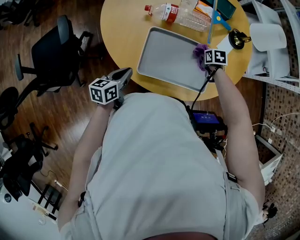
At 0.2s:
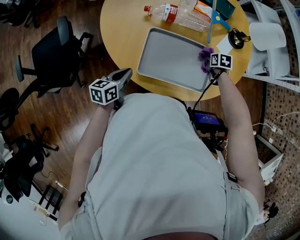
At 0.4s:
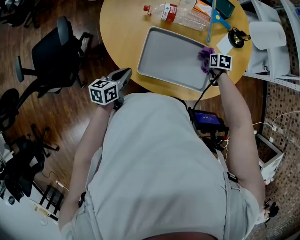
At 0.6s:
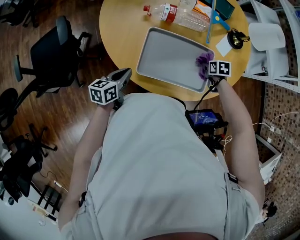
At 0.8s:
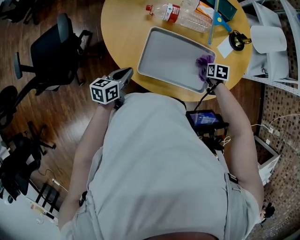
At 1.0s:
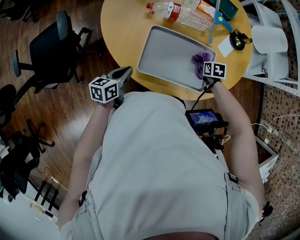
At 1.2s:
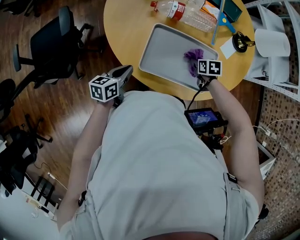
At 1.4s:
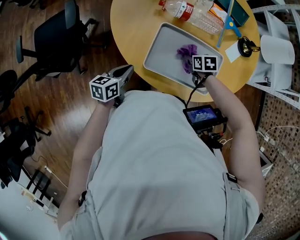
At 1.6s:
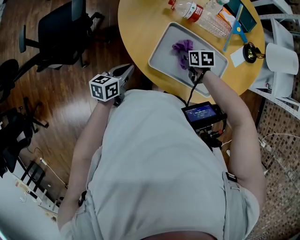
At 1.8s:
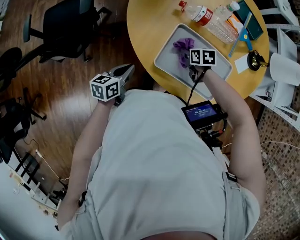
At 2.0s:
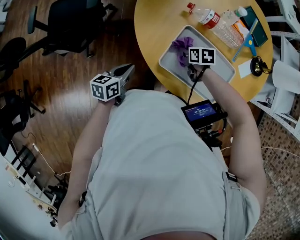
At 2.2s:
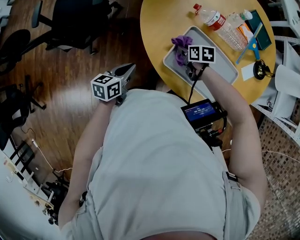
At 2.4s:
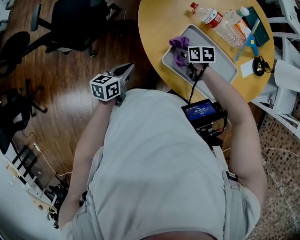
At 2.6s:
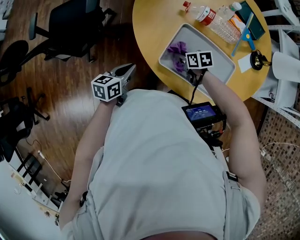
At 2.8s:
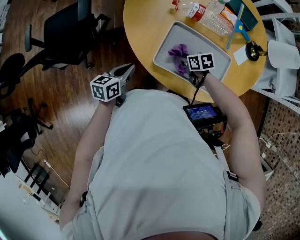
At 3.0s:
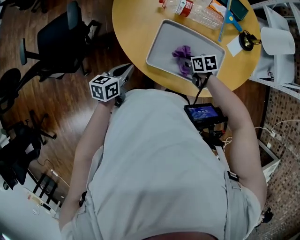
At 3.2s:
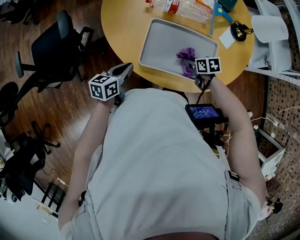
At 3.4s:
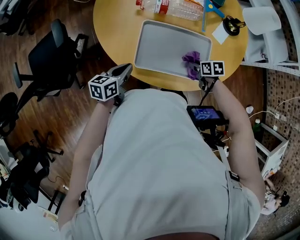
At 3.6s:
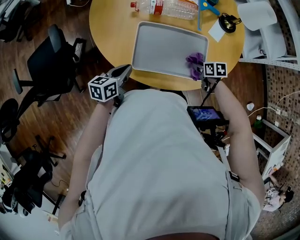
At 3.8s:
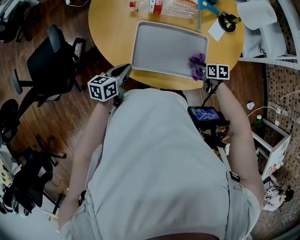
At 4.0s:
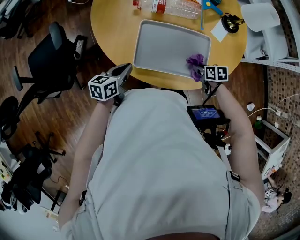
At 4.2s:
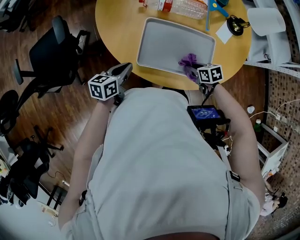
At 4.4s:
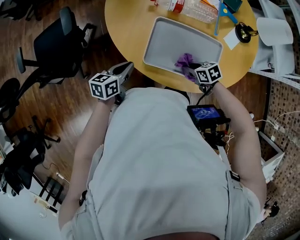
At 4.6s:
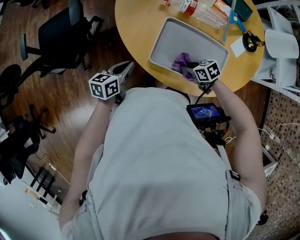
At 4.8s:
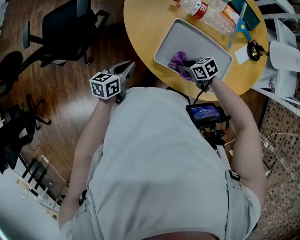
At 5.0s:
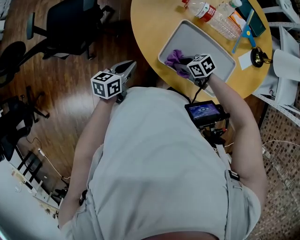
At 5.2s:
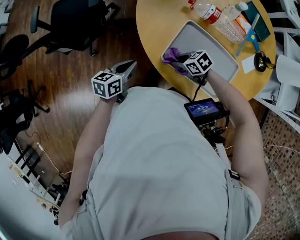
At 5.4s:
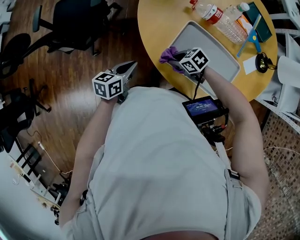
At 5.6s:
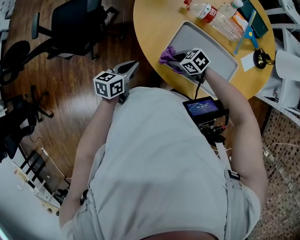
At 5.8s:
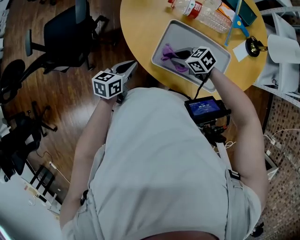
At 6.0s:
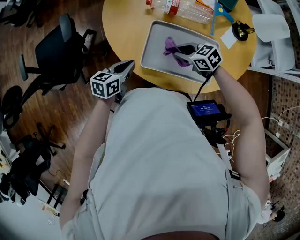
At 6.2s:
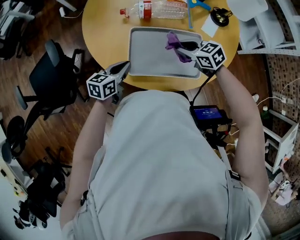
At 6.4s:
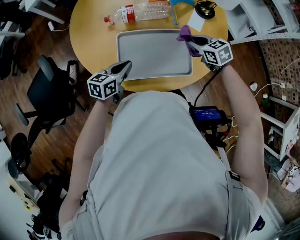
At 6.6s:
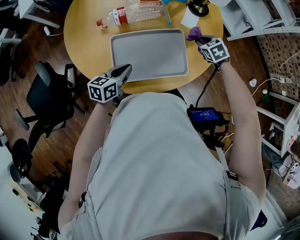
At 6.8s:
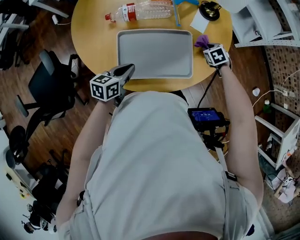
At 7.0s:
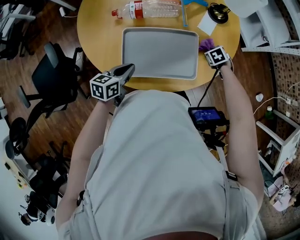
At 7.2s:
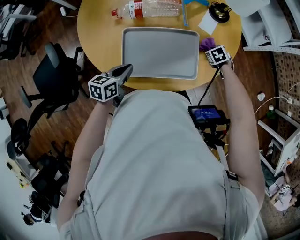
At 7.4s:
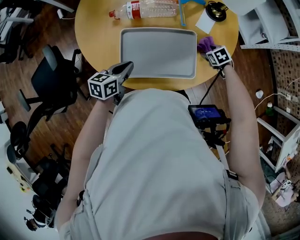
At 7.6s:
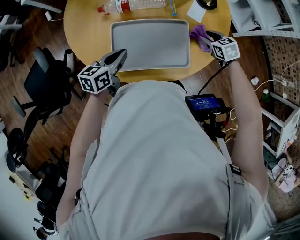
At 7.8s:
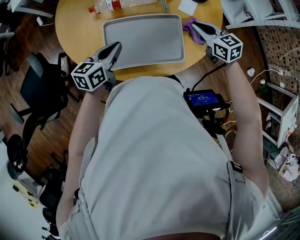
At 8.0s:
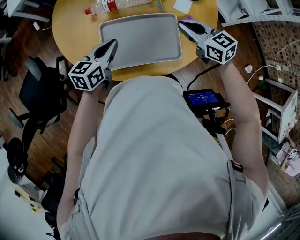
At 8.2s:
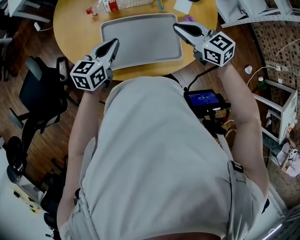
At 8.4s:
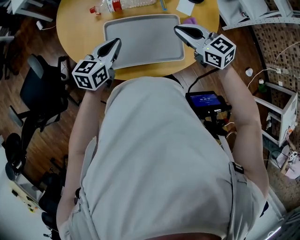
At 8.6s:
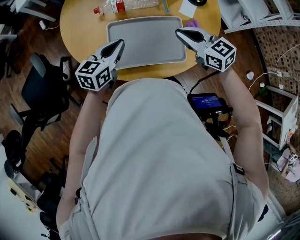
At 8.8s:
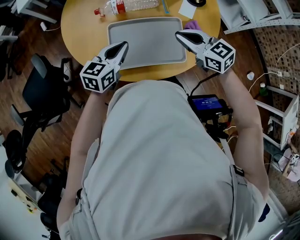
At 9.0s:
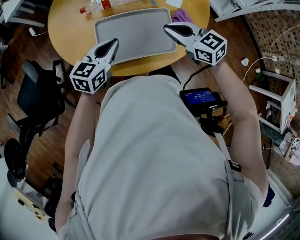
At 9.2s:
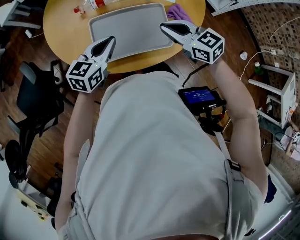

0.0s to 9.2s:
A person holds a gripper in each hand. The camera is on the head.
0.0s to 1.6s: The left gripper shifts by about 5 cm. Meanwhile the right gripper changes place by about 20 cm, and rotates roughly 20 degrees.
1.6s to 3.0s: The right gripper goes roughly 5 cm backward, and moves some 10 cm to the left and comes back.
4.6s to 6.2s: The left gripper ends up some 10 cm from where it was, and changes its angle by some 20 degrees. The right gripper moves upward, about 15 cm, and rotates some 30 degrees.
6.2s to 7.6s: The left gripper ends up some 10 cm from where it was. Meanwhile the right gripper moves approximately 15 cm downward and comes back, turns by some 30 degrees, and opens up.
7.6s to 9.2s: The left gripper heads upward, covering some 5 cm, and changes its angle by about 20 degrees, while the right gripper travels upward, to the left and backward by roughly 25 cm, tilts its fingers about 30 degrees upward, and closes its fingers.

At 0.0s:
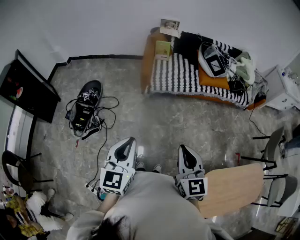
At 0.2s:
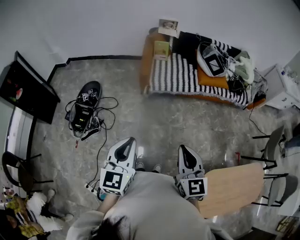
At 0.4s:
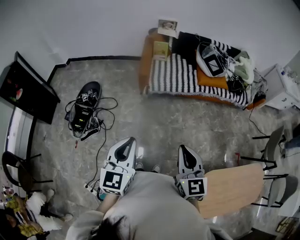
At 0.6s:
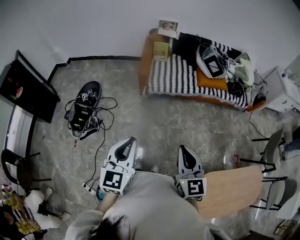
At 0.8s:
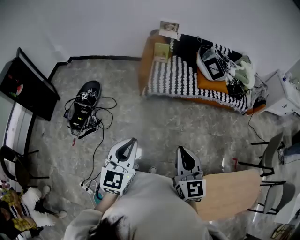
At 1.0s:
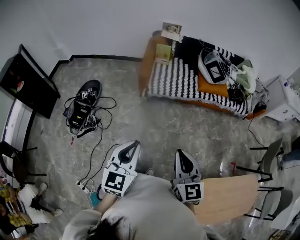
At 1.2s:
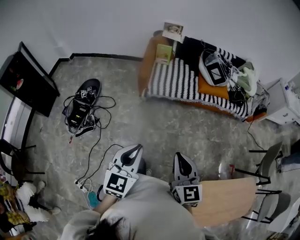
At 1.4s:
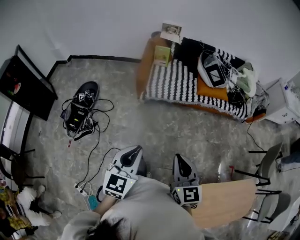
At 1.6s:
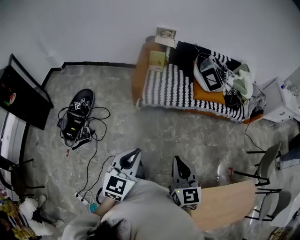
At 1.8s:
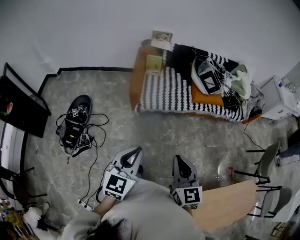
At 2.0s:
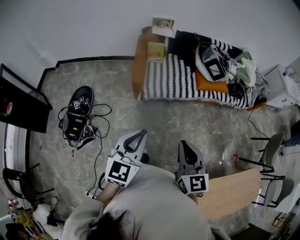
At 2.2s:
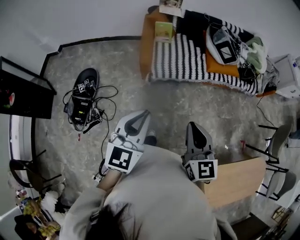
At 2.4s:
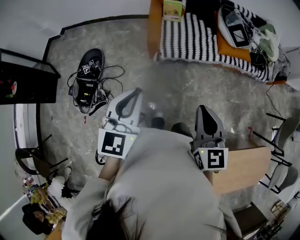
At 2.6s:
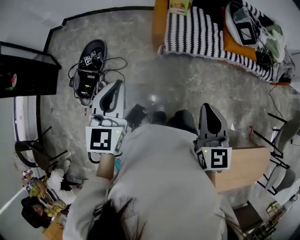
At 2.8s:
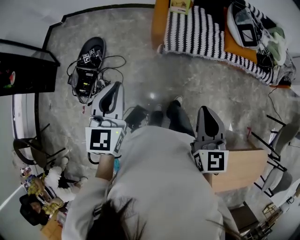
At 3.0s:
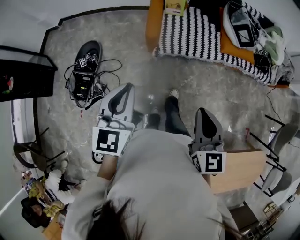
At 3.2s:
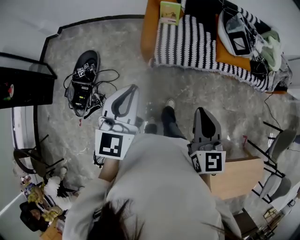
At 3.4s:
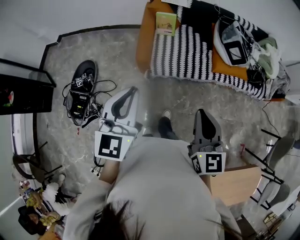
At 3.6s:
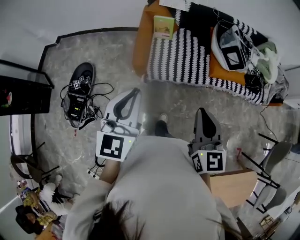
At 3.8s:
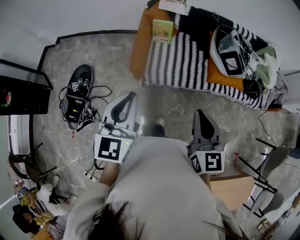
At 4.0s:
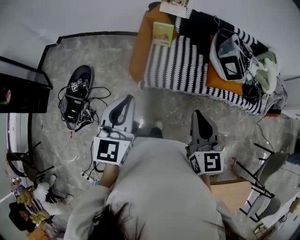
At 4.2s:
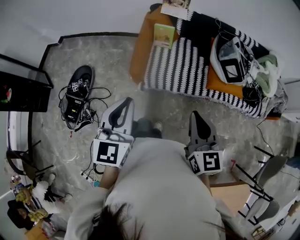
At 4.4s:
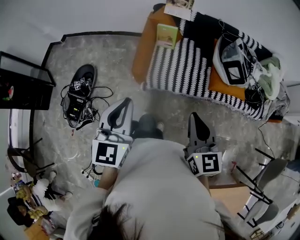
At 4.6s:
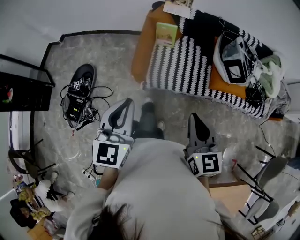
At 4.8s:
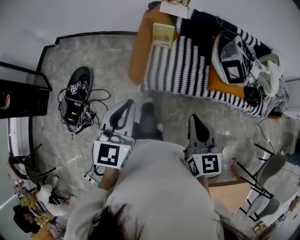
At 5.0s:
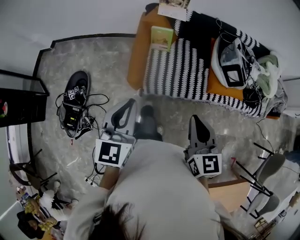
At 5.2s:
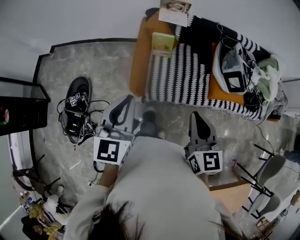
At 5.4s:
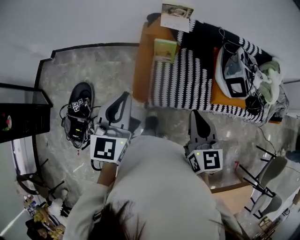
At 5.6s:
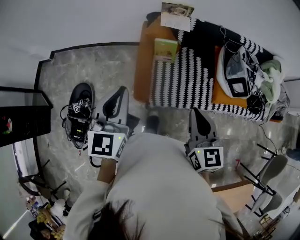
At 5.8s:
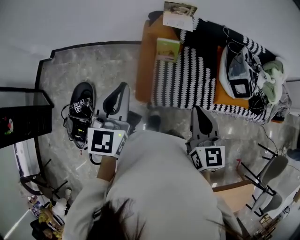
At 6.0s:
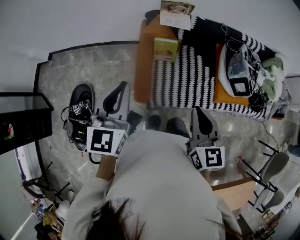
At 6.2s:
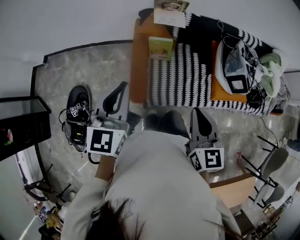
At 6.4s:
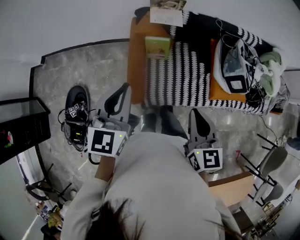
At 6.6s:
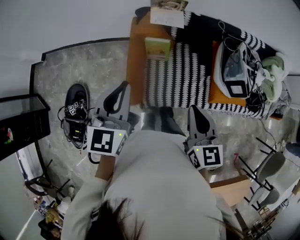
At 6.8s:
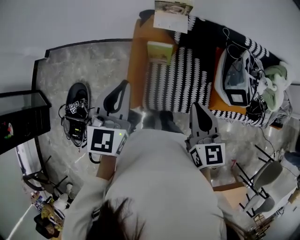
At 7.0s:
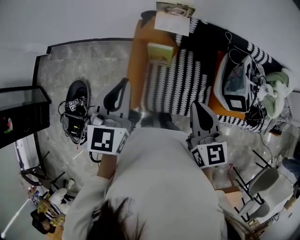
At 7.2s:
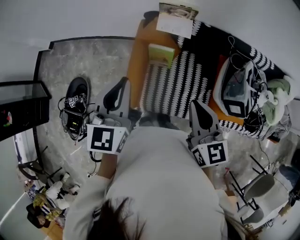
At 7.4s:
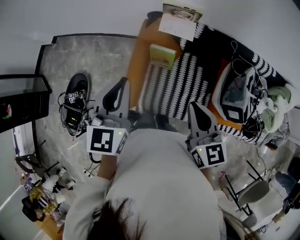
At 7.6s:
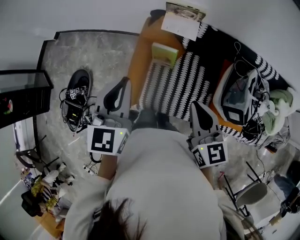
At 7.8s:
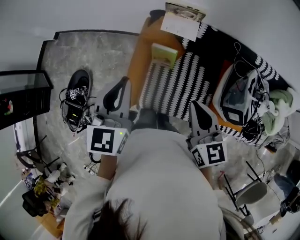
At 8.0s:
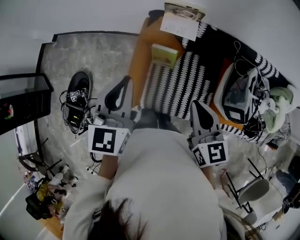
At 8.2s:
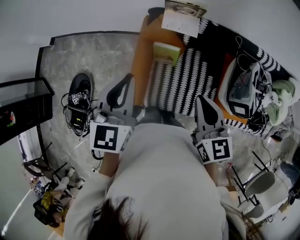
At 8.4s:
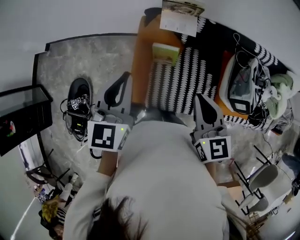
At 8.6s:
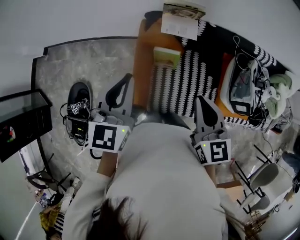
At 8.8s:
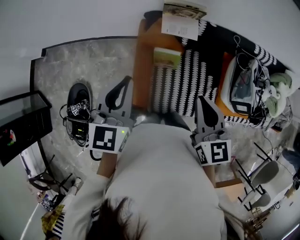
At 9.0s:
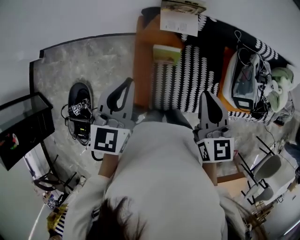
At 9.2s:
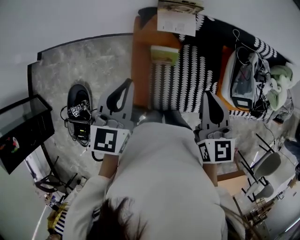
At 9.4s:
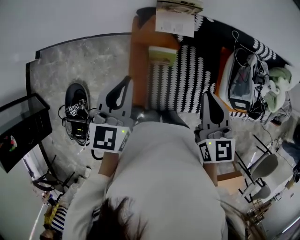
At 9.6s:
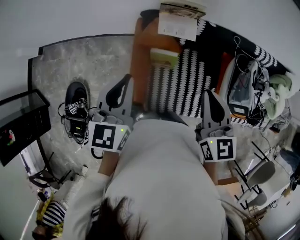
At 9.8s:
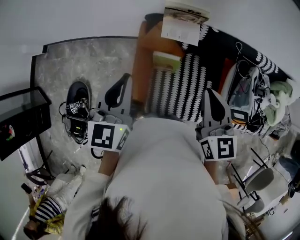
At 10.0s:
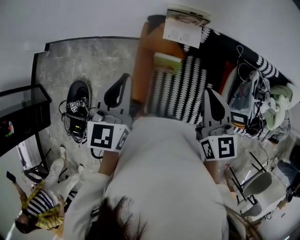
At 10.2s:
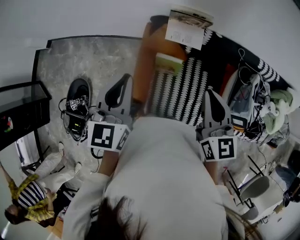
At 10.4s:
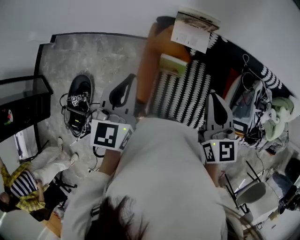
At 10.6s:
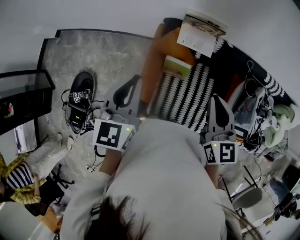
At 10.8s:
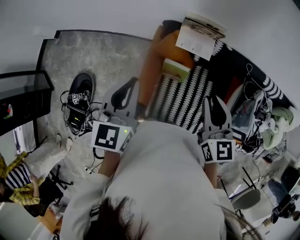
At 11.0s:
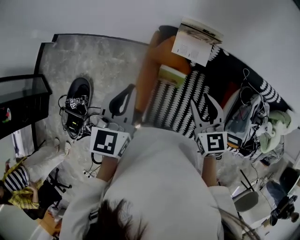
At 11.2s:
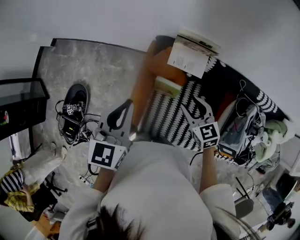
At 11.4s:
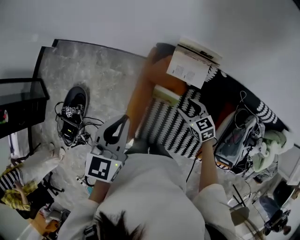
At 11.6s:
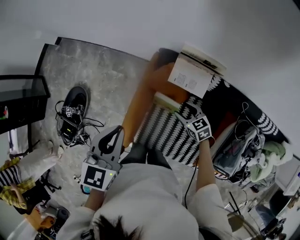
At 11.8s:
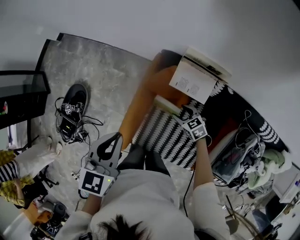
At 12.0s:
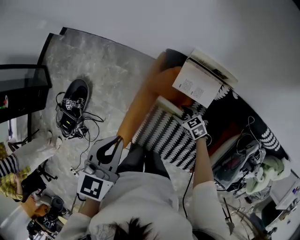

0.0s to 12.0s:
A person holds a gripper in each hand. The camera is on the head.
0.0s to 1.6s: The two grippers go some 10 cm forward and to the right.
1.6s to 3.0s: The left gripper goes some 25 cm forward and to the left, while the right gripper heads forward, covering roughly 15 cm.
3.0s to 4.4s: Both grippers move forward and to the right, approximately 20 cm.
4.4s to 6.0s: Both grippers move forward, approximately 25 cm.
6.0s to 7.6s: Both grippers move forward and to the right, about 20 cm. The right gripper changes its angle by approximately 20 degrees.
7.6s to 9.0s: The grippers both shift forward and to the left by approximately 10 cm.
9.0s to 10.4s: The right gripper heads forward, covering about 5 cm.
10.4s to 12.0s: The left gripper is displaced downward by approximately 10 cm; the right gripper moves downward, roughly 40 cm, angles its fingers downward, by roughly 30 degrees, and opens its fingers.

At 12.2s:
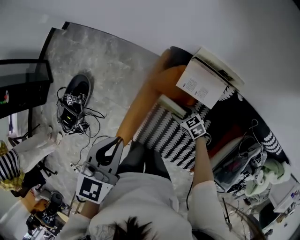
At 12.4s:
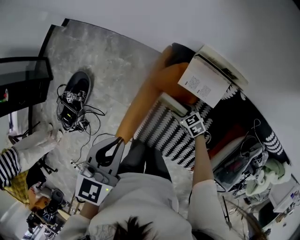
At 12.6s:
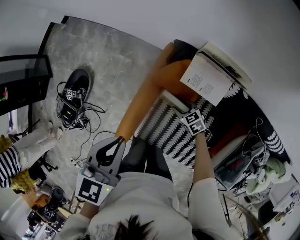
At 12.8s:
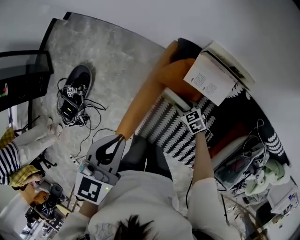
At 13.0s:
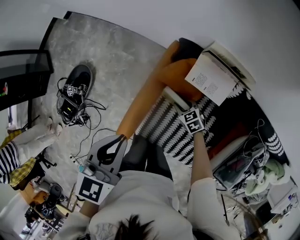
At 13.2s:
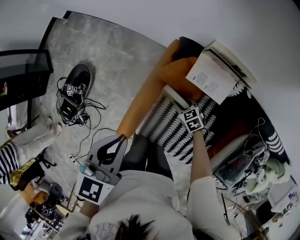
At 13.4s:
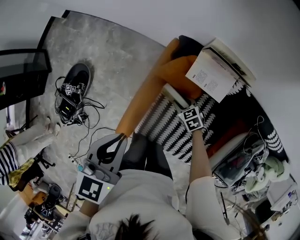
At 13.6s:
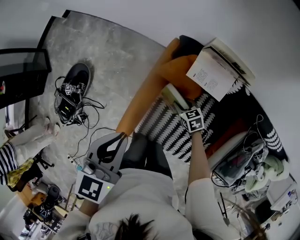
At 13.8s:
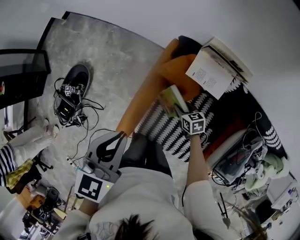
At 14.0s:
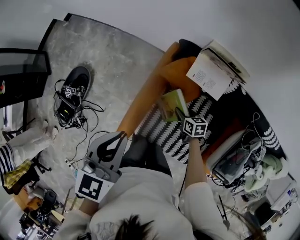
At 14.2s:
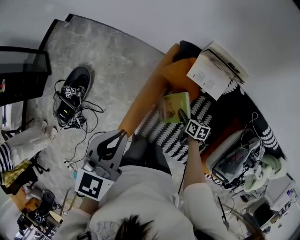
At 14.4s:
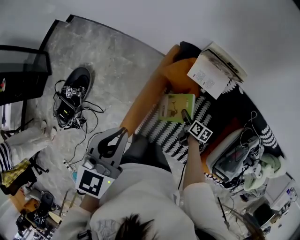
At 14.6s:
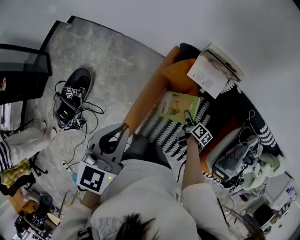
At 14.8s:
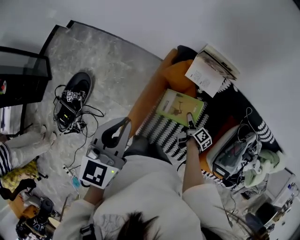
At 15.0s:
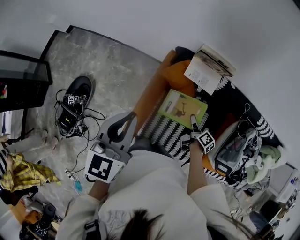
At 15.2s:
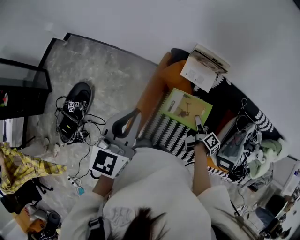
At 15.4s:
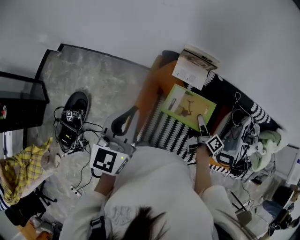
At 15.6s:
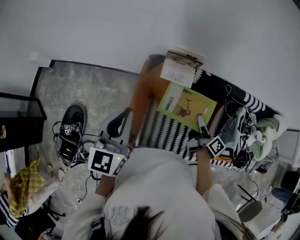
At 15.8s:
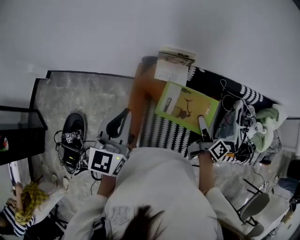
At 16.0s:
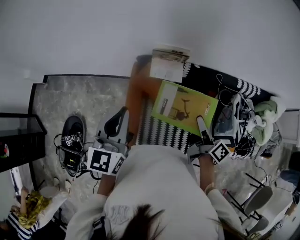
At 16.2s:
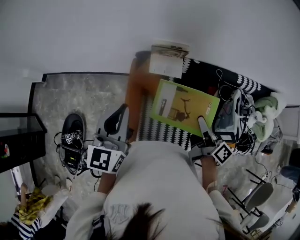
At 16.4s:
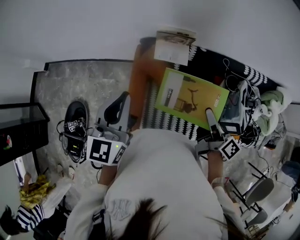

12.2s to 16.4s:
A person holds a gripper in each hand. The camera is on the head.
12.2s to 13.6s: The right gripper closes its fingers.
13.6s to 15.0s: The right gripper heads upward, backward and to the right, covering roughly 20 cm, and twists roughly 70 degrees clockwise, seen from behind. The left gripper heads upward, covering approximately 10 cm.
15.0s to 16.4s: The left gripper travels to the right by some 5 cm; the right gripper is displaced upward by roughly 30 cm, and rotates roughly 20 degrees.
